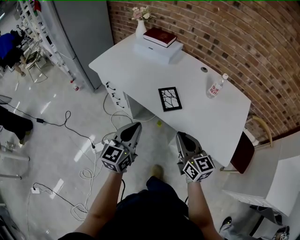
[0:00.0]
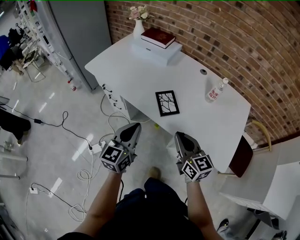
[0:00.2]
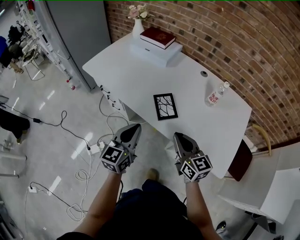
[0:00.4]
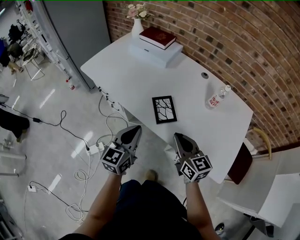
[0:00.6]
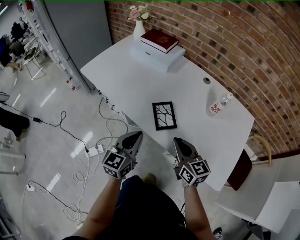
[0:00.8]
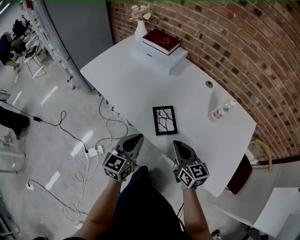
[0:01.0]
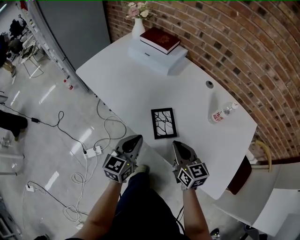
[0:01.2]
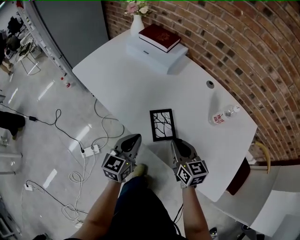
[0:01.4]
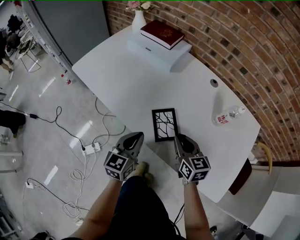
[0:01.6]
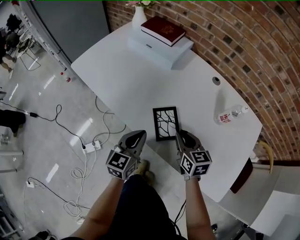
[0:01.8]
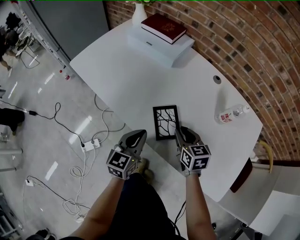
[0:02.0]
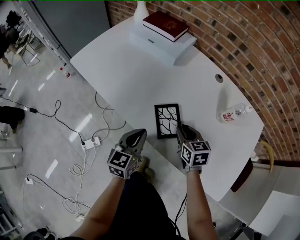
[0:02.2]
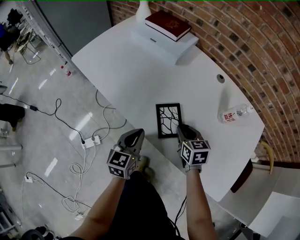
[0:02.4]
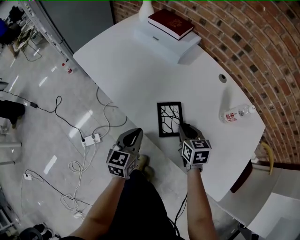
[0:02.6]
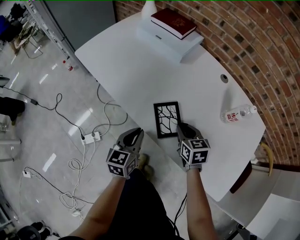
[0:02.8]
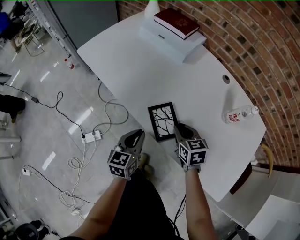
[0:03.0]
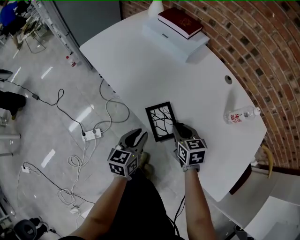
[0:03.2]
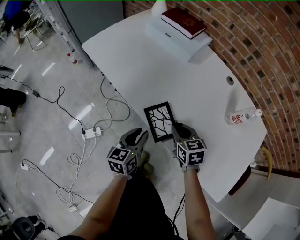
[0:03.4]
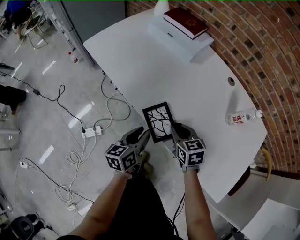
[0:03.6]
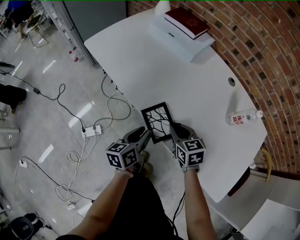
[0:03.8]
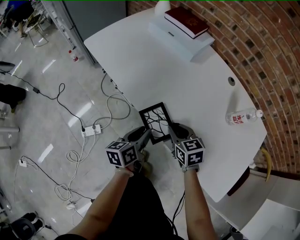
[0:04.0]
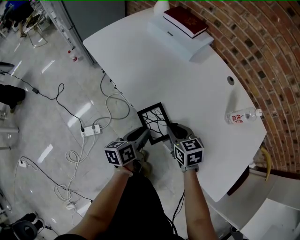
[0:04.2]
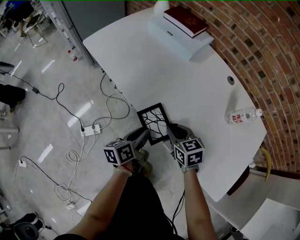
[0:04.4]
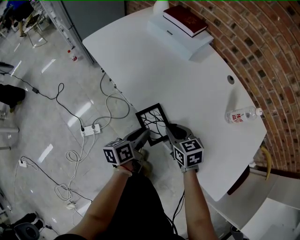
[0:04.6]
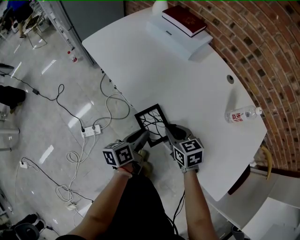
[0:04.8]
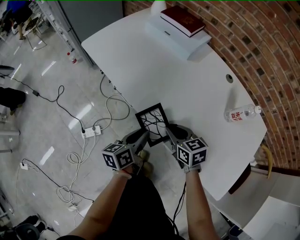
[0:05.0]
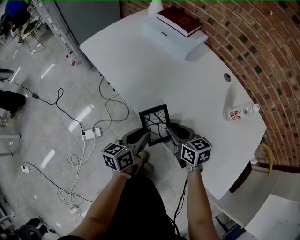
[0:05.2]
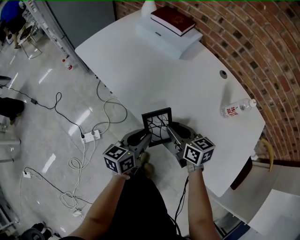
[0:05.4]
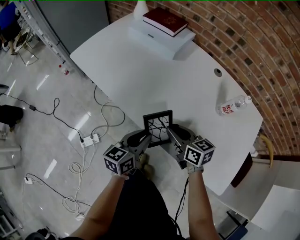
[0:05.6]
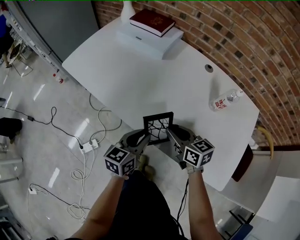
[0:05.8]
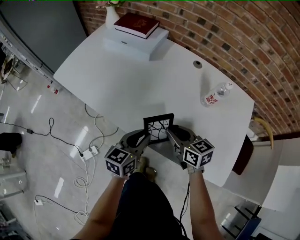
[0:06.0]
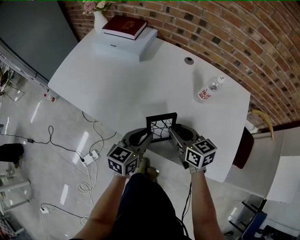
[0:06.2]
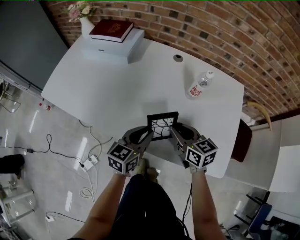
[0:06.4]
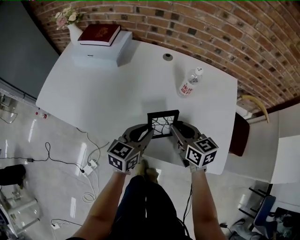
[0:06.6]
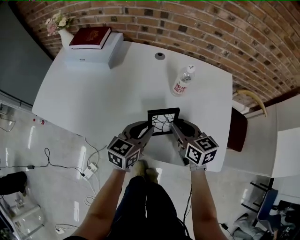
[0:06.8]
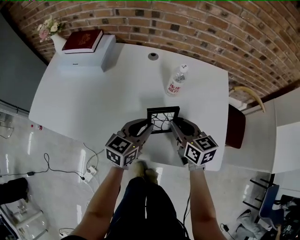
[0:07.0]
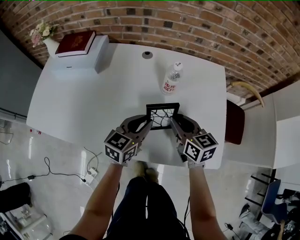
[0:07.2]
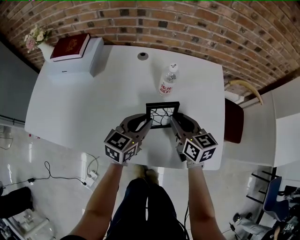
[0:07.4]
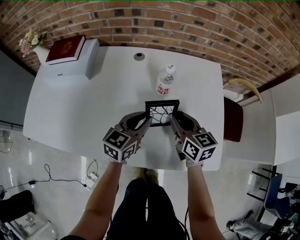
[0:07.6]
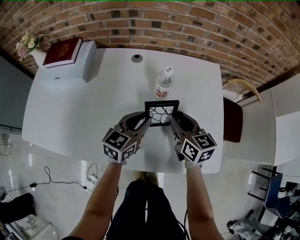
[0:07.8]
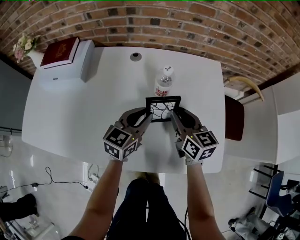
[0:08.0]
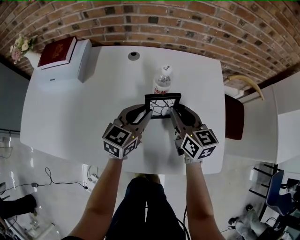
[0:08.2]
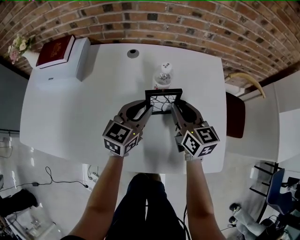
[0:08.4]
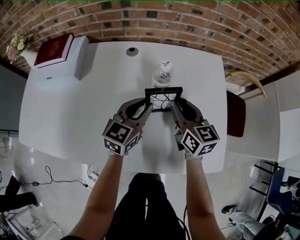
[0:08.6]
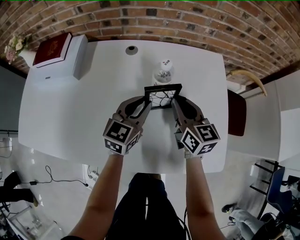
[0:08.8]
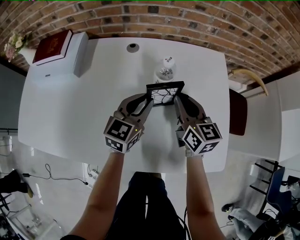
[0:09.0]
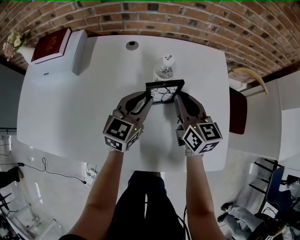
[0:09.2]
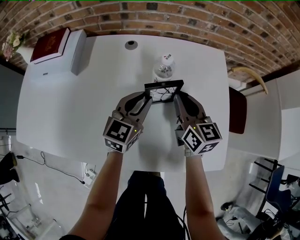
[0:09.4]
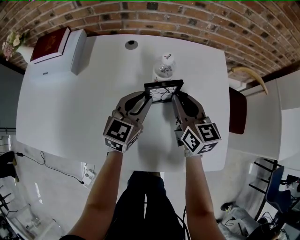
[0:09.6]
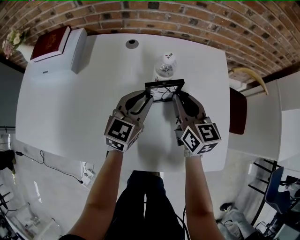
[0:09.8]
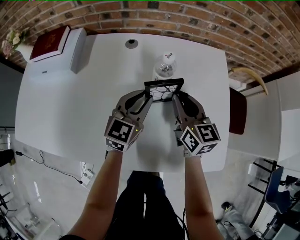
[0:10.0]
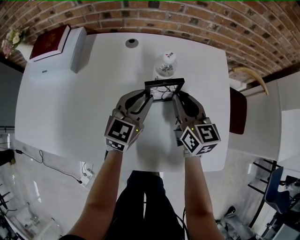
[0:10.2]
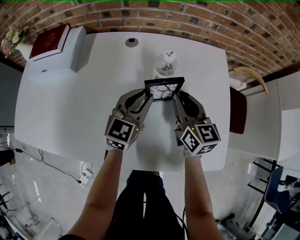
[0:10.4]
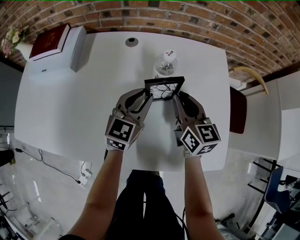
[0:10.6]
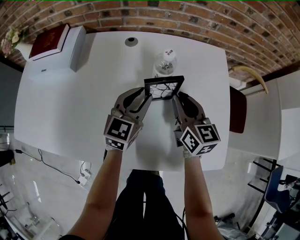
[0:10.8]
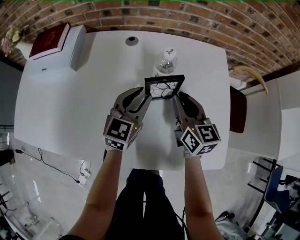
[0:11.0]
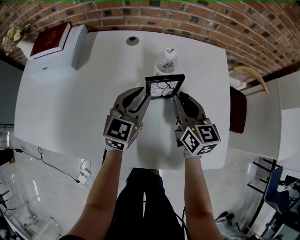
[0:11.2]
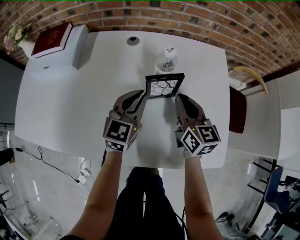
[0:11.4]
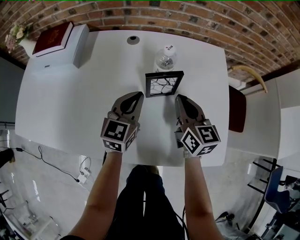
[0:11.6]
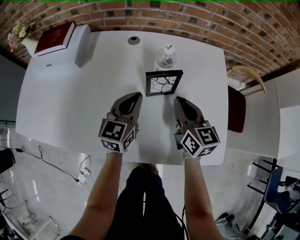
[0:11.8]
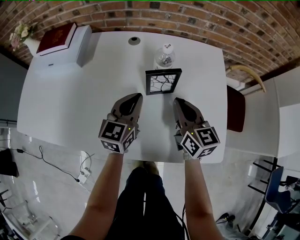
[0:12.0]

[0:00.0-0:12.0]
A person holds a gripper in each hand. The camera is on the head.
0:00.0 to 0:01.6: The two grippers go roughly 25 cm forward and downward.
0:01.6 to 0:03.0: Both grippers move downward, some 5 cm.
0:03.0 to 0:04.4: The left gripper rotates some 40 degrees, and opens, while the right gripper is displaced to the left by approximately 5 cm.
0:04.4 to 0:06.0: Both grippers travel together to the right and upward, some 10 cm. The left gripper twists some 40 degrees clockwise, seen from behind, while the right gripper swivels some 20 degrees.
0:06.0 to 0:07.6: The left gripper shifts by some 20 cm, and changes its angle by roughly 30 degrees. The right gripper changes place by some 20 cm, and changes its angle by some 30 degrees.
0:07.6 to 0:09.0: Both grippers travel together forward, about 5 cm.
0:09.0 to 0:10.4: There are only small adjustments of the grippers.
0:10.4 to 0:12.0: The right gripper shifts some 5 cm backward, while the left gripper shifts by some 5 cm.

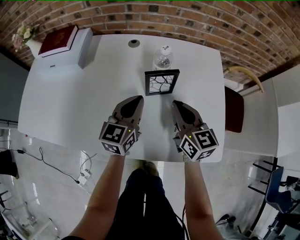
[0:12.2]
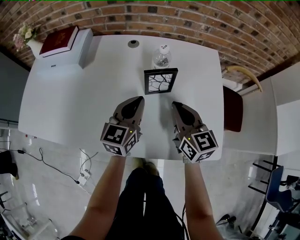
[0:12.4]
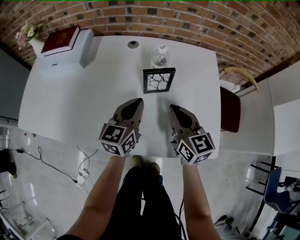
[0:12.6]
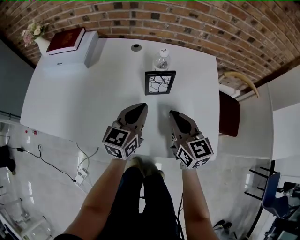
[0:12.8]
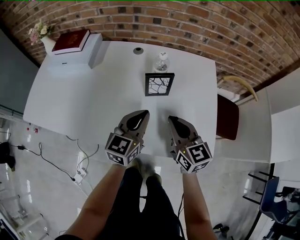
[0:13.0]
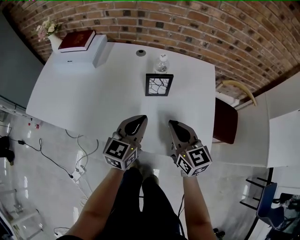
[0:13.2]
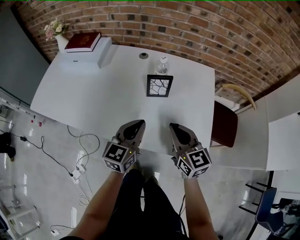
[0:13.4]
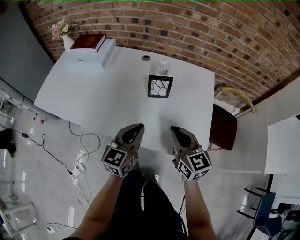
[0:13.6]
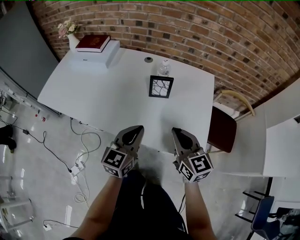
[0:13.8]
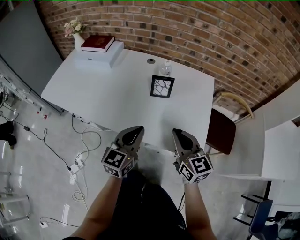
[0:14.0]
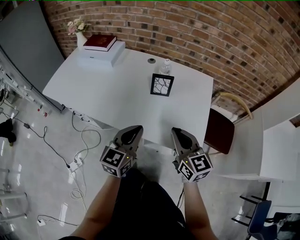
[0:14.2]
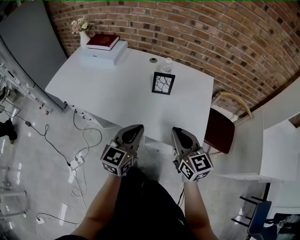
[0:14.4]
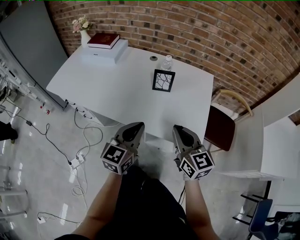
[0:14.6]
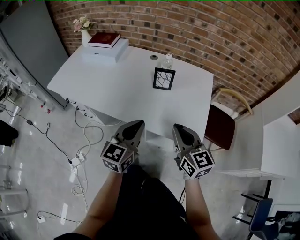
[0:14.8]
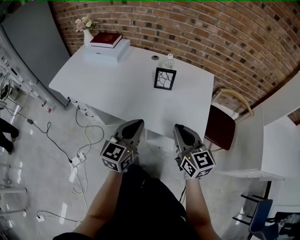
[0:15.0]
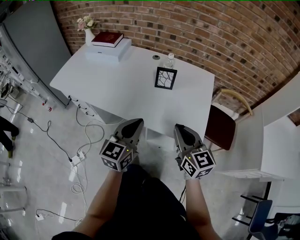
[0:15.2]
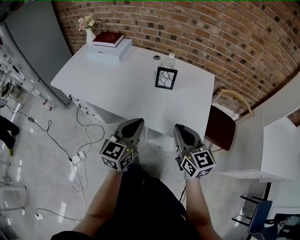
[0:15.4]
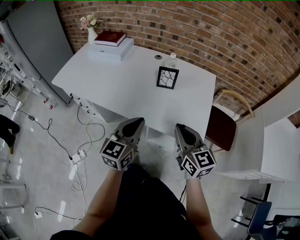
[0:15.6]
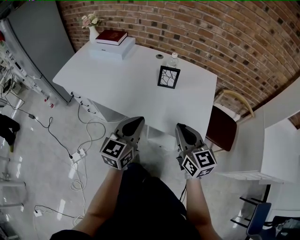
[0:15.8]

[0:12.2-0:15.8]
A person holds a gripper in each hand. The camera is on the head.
0:12.2 to 0:14.0: The grippers both shift backward and upward by roughly 25 cm.
0:14.0 to 0:15.8: The grippers both shift backward by some 10 cm.

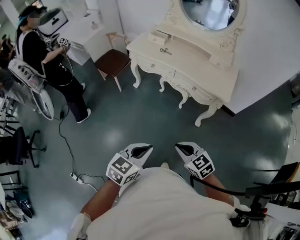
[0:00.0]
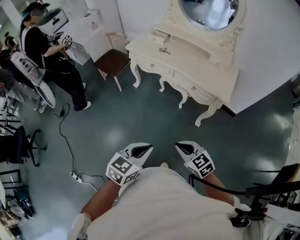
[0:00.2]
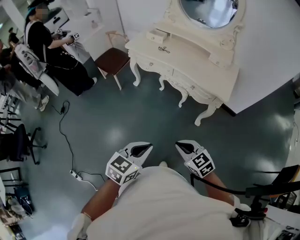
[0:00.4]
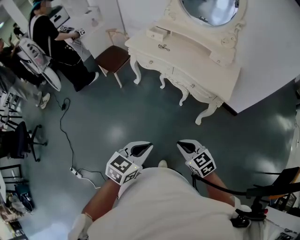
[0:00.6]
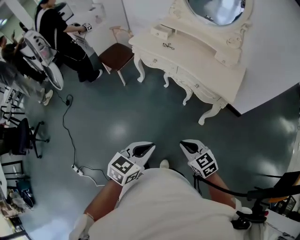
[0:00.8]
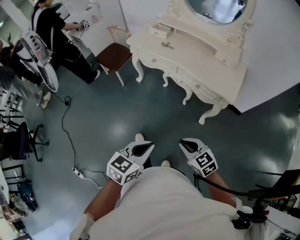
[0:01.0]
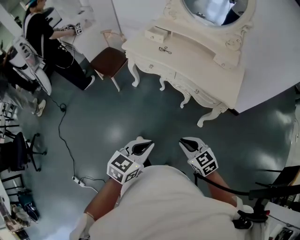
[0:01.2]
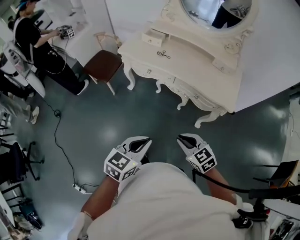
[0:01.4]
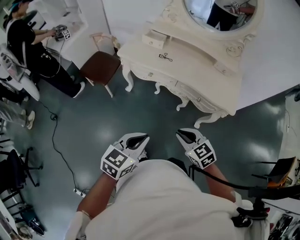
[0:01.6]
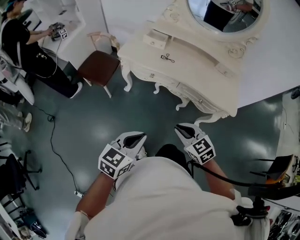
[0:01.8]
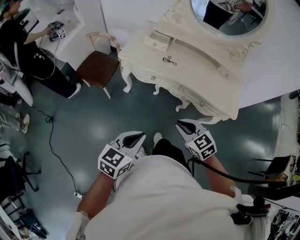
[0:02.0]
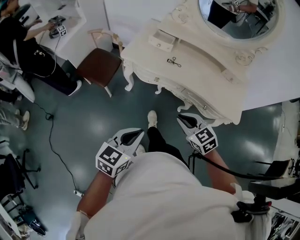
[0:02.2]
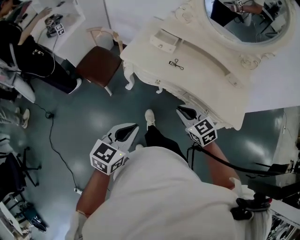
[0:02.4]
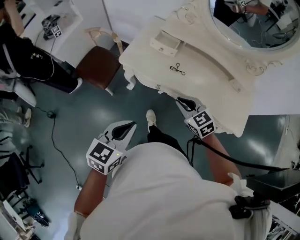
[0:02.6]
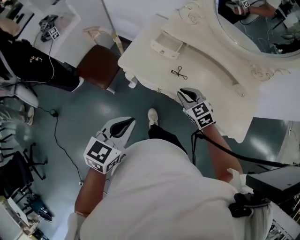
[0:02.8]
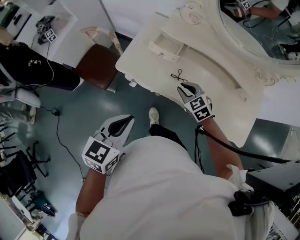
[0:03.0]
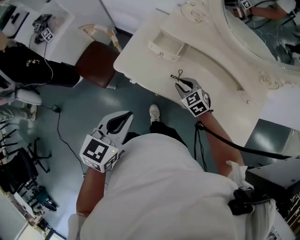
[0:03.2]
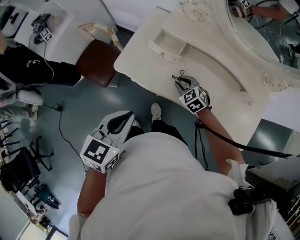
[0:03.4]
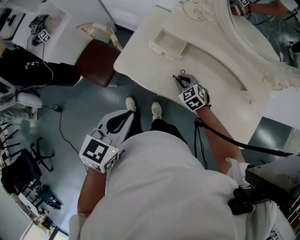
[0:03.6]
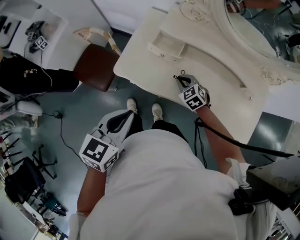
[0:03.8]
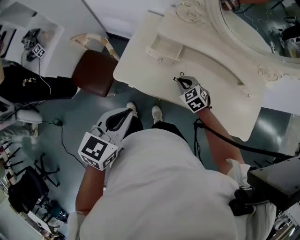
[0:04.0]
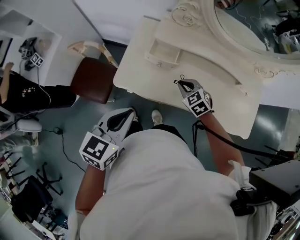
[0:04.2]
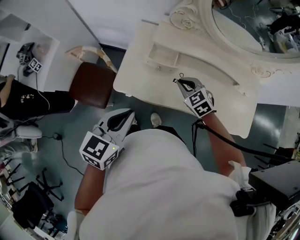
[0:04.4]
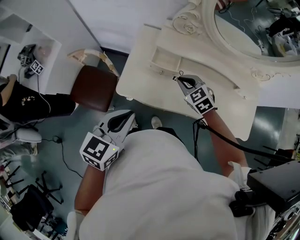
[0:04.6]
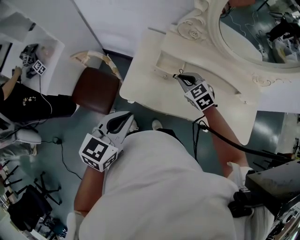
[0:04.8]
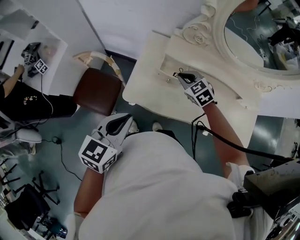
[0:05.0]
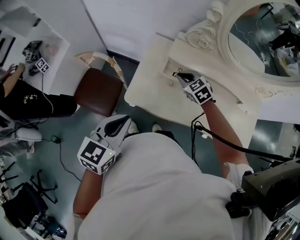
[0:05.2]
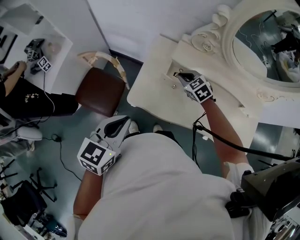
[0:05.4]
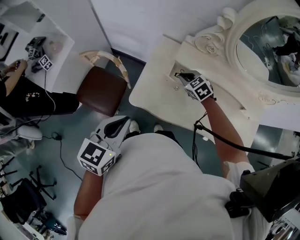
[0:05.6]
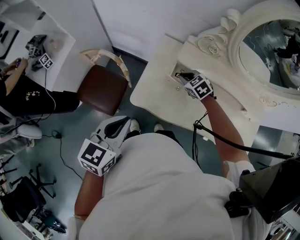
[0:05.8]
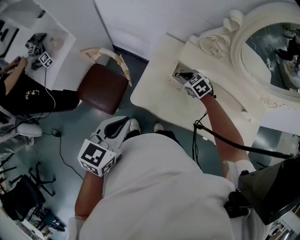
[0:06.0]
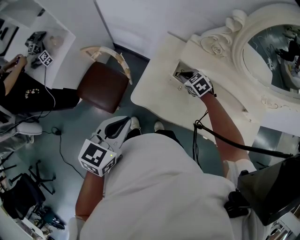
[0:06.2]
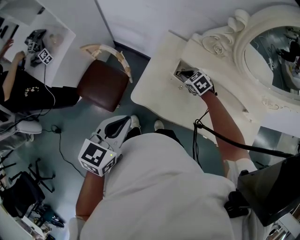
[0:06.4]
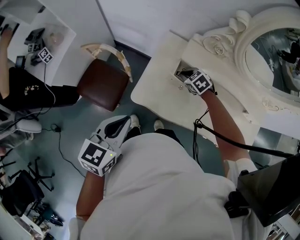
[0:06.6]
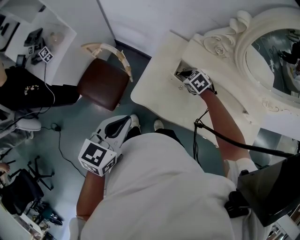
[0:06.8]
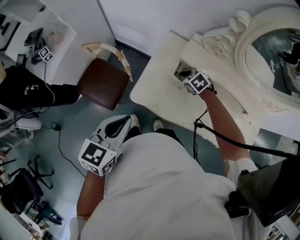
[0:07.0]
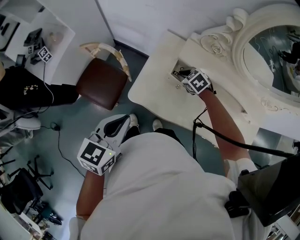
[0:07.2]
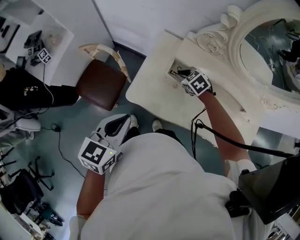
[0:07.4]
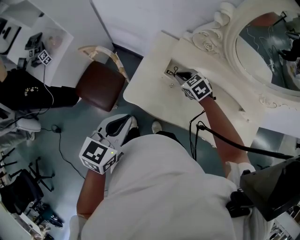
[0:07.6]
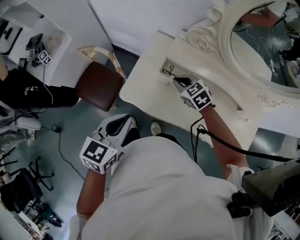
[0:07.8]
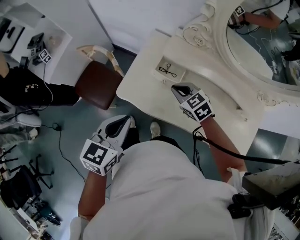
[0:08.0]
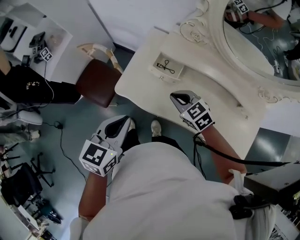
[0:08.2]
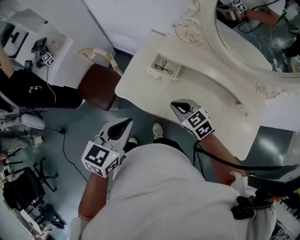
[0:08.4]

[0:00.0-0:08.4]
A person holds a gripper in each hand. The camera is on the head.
0:00.0 to 0:01.4: Both grippers move forward, some 20 cm.
0:01.4 to 0:02.8: The two grippers travel together, forward, roughly 50 cm.
0:02.8 to 0:04.2: Both grippers move forward, roughly 15 cm.
0:04.2 to 0:05.6: The right gripper is displaced forward and to the left by about 20 cm; the left gripper travels to the left and forward by roughly 15 cm.
0:05.6 to 0:07.0: The right gripper shifts roughly 5 cm downward.
0:07.0 to 0:08.4: The left gripper shifts some 15 cm to the right and backward, while the right gripper is displaced backward and upward by about 25 cm, and rotates roughly 30 degrees.
